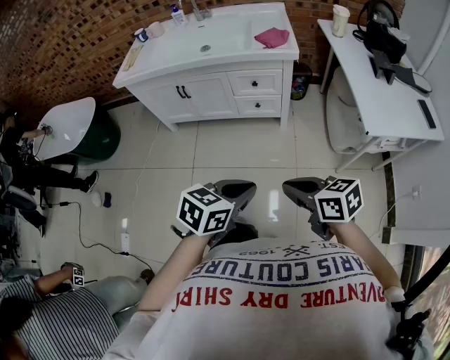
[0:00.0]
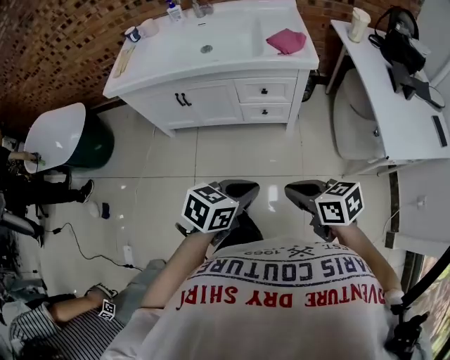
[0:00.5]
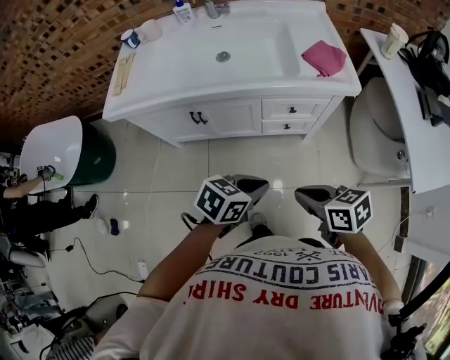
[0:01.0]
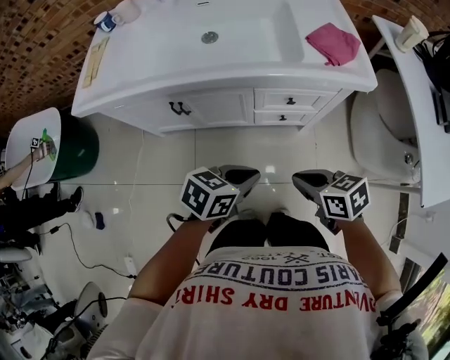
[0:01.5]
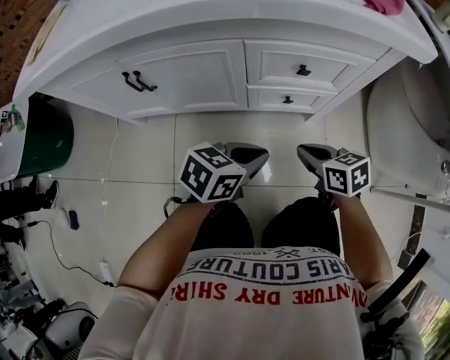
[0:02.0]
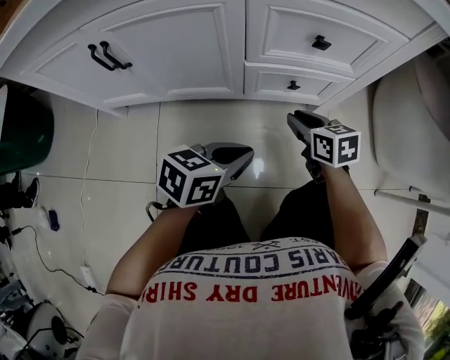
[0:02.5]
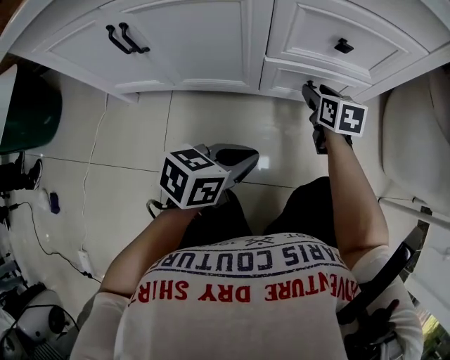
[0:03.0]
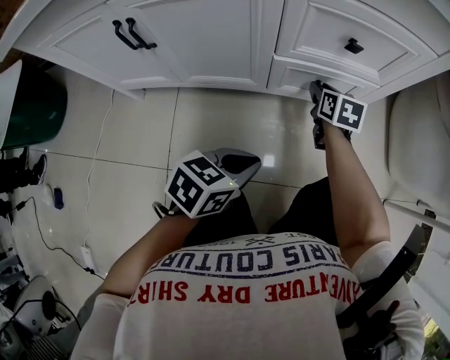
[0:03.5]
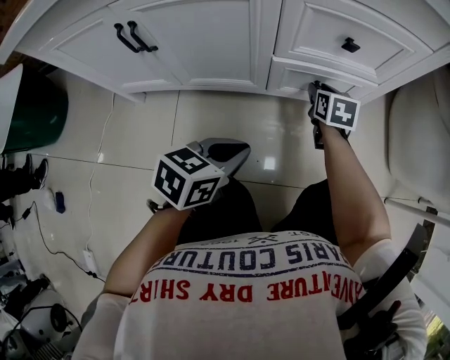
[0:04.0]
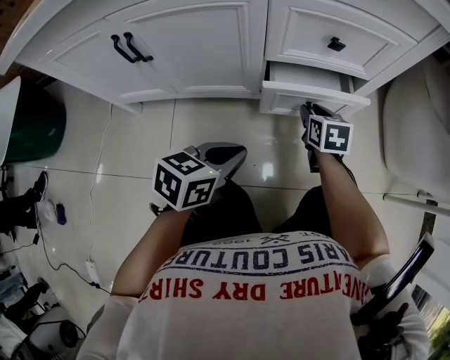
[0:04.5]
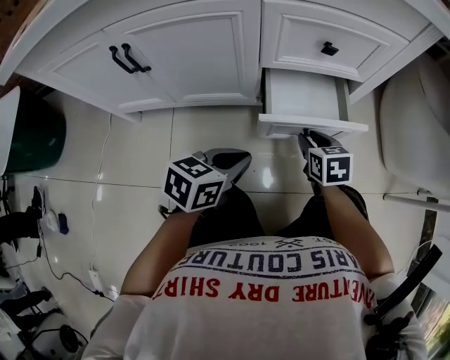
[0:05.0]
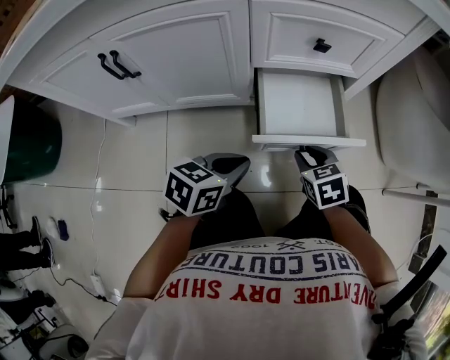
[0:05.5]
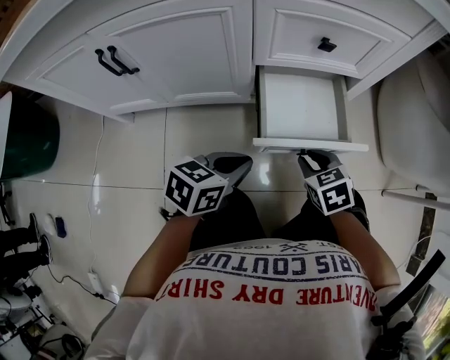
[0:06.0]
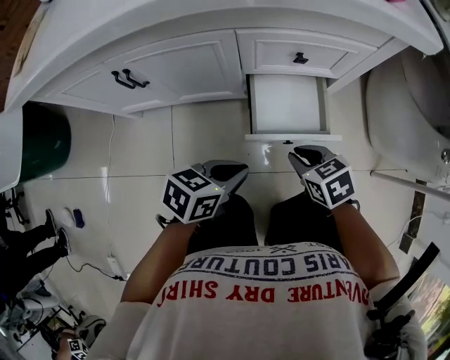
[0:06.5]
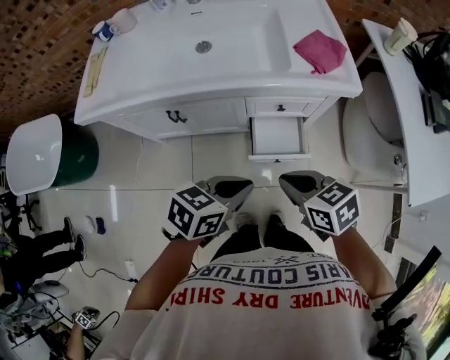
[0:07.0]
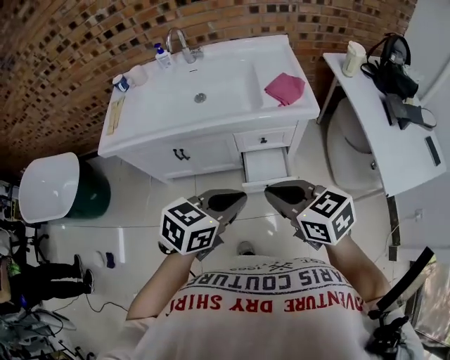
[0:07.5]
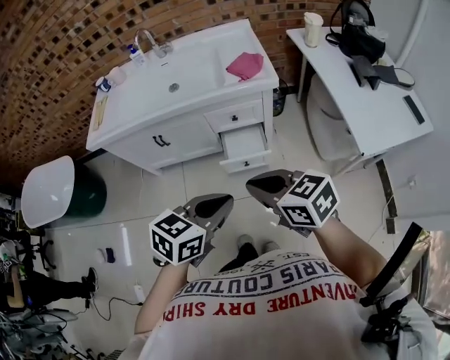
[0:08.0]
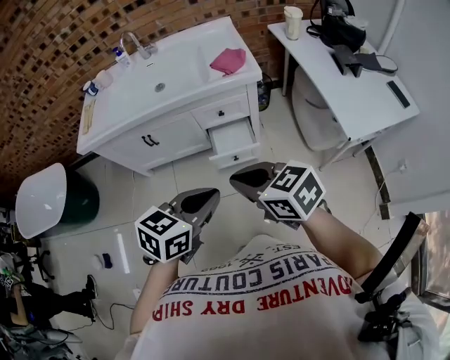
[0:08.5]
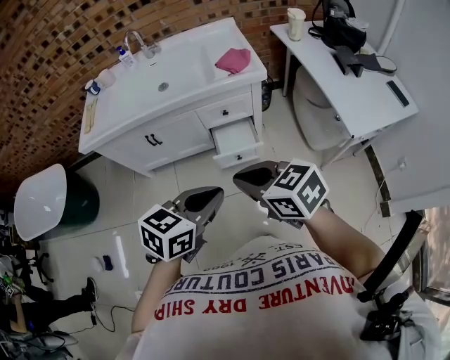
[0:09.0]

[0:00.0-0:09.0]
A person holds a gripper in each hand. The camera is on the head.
0:00.0 to 0:02.0: Both grippers are carried roughly 50 cm.
0:02.0 to 0:04.5: The right gripper moves downward and forward, some 20 cm, changes its angle by roughly 30 degrees, and opens its fingers. The left gripper moves downward and to the left, roughly 15 cm.
0:04.5 to 0:07.0: The left gripper goes approximately 40 cm upward. Meanwhile the right gripper heads upward and backward, covering about 50 cm, changes its angle by some 30 degrees, and closes.
0:07.0 to 0:09.0: Both grippers move backward and upward, some 30 cm.

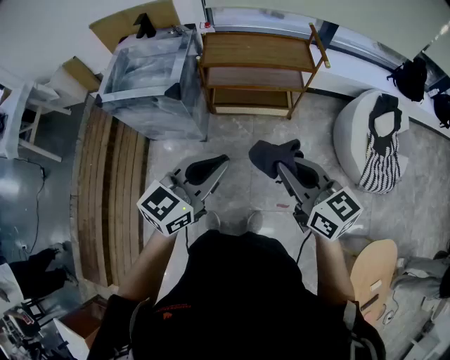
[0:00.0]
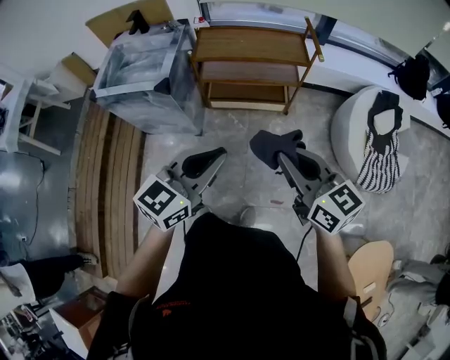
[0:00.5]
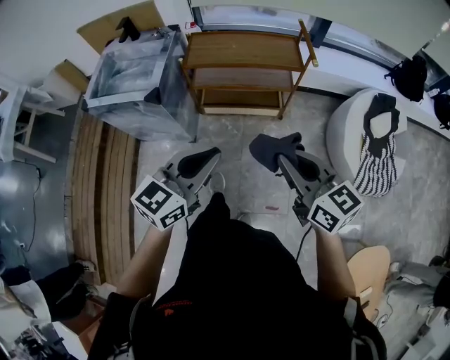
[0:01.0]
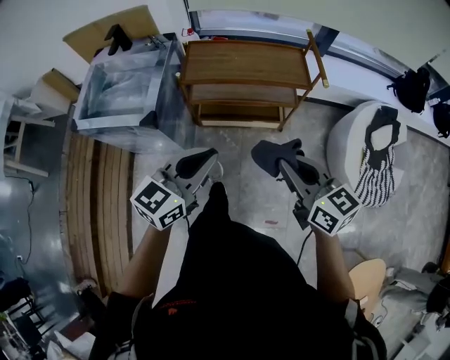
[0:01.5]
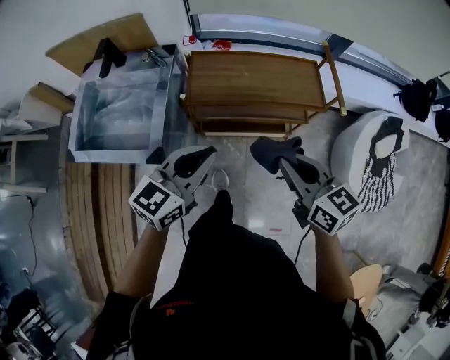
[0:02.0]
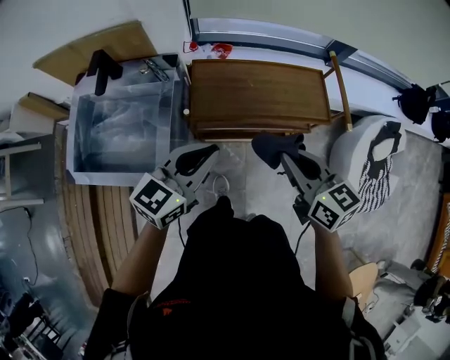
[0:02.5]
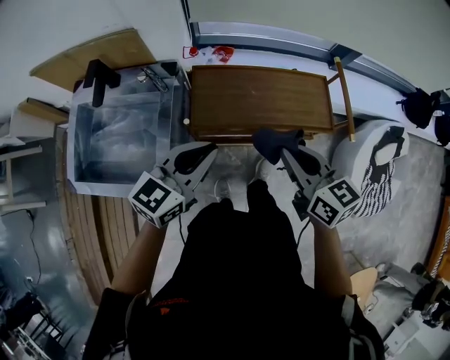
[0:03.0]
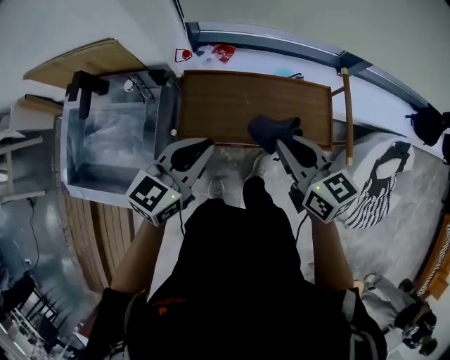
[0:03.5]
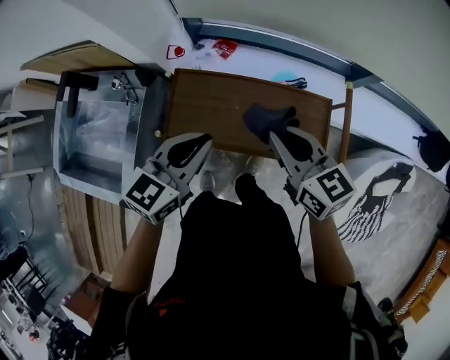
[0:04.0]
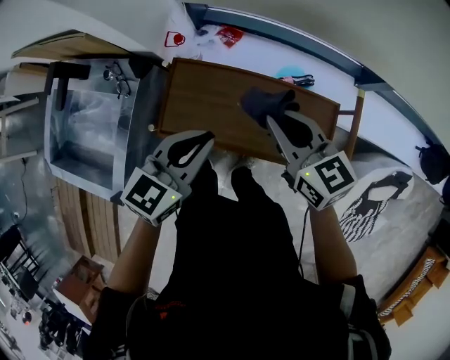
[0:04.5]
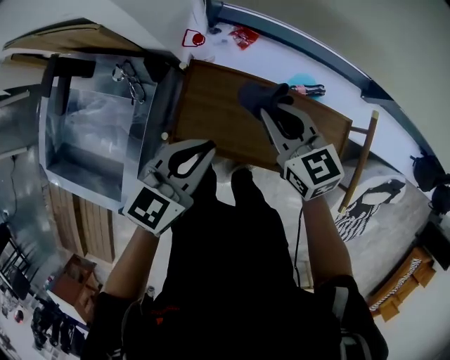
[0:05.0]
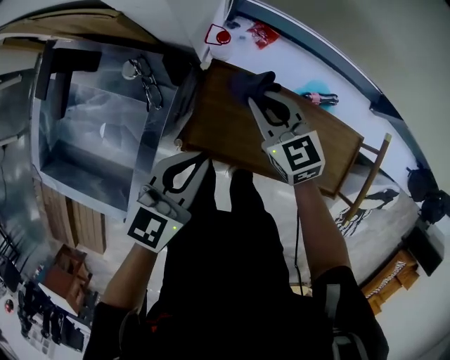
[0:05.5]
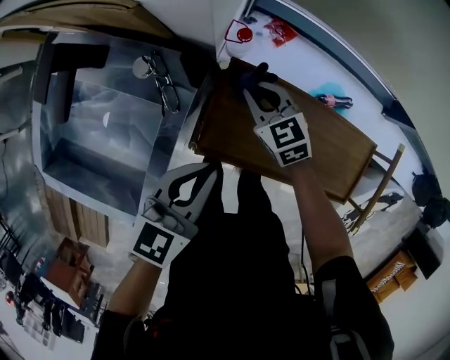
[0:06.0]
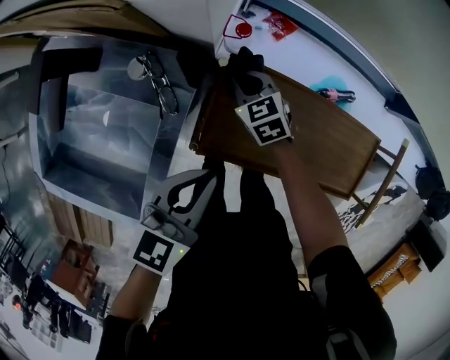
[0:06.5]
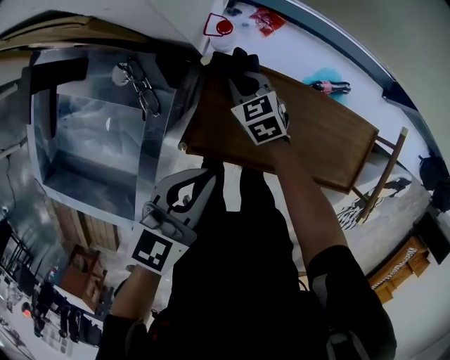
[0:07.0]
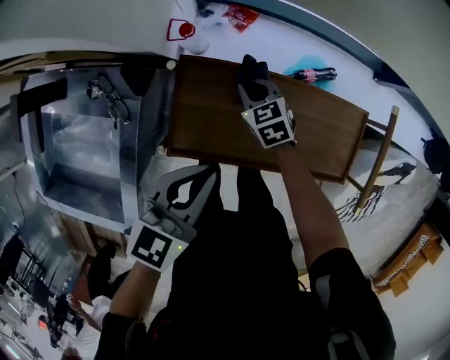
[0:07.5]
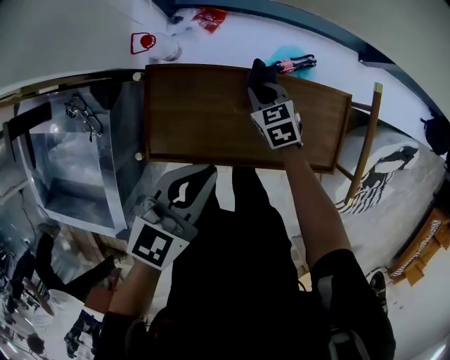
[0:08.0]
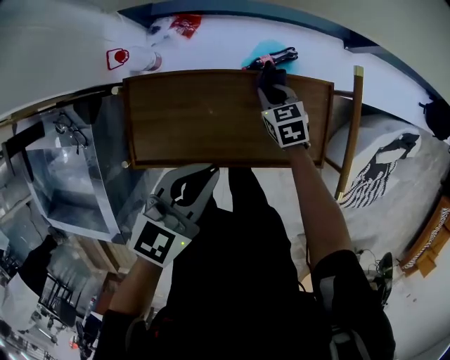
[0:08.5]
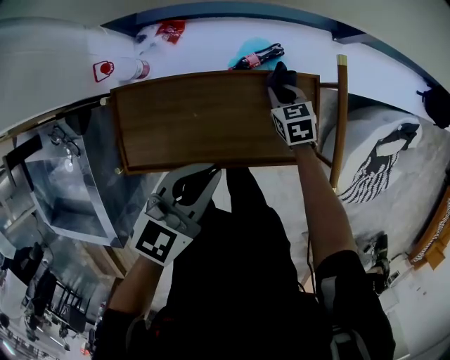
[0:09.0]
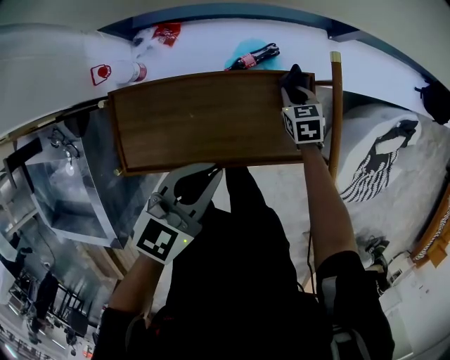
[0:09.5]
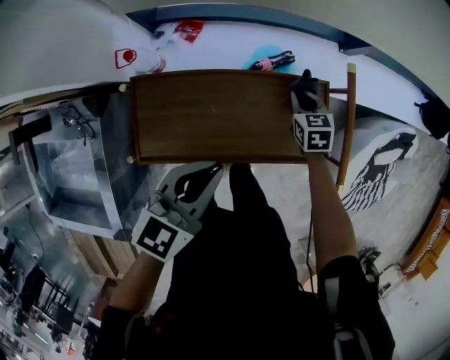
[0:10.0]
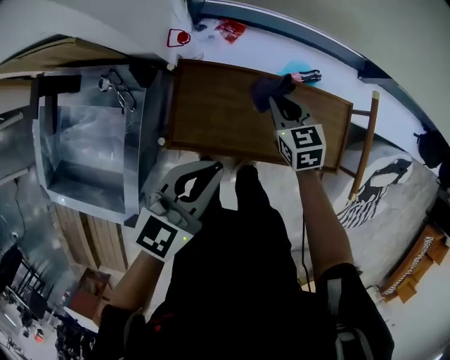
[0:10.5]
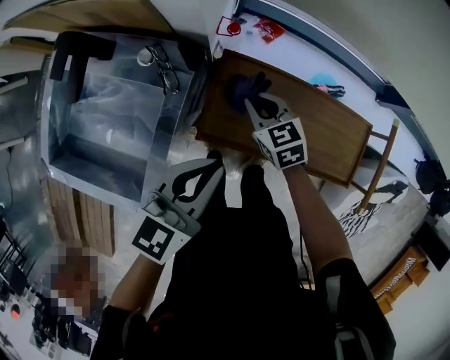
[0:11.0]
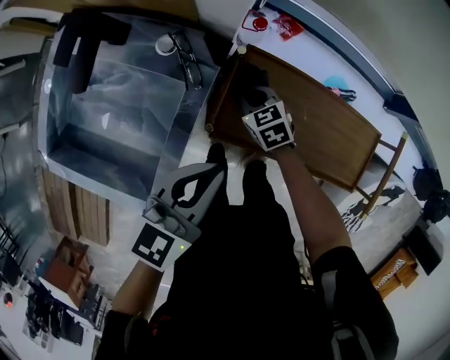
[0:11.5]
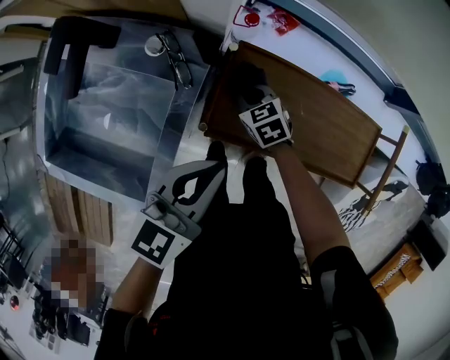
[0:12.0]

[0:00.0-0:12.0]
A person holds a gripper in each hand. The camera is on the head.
0:00.0 to 0:02.0: Both grippers move forward, about 35 cm.
0:02.0 to 0:04.0: Both grippers travel together forward, about 35 cm.
0:04.0 to 0:06.0: The right gripper shifts some 40 cm to the left, downward and forward, and turns by about 30 degrees, while the left gripper heads to the left and downward, covering approximately 20 cm.
0:06.0 to 0:08.0: Both grippers move to the right, roughly 20 cm. The right gripper turns by about 20 degrees.
0:08.0 to 0:10.0: The left gripper travels to the right by about 5 cm, while the right gripper shifts about 20 cm to the right, and swivels some 20 degrees.
0:10.0 to 0:12.0: The right gripper reaches roughly 10 cm upward, then returns, and rotates some 40 degrees, while the left gripper moves approximately 25 cm.

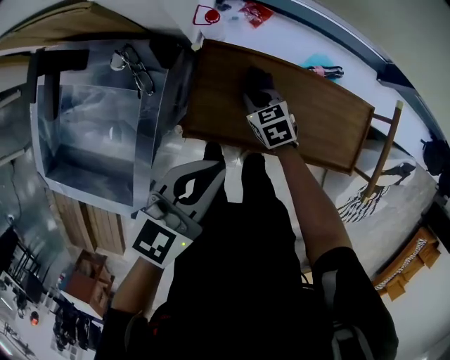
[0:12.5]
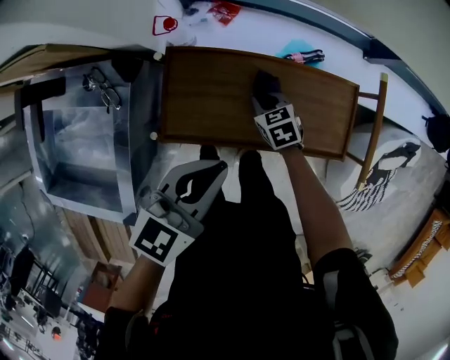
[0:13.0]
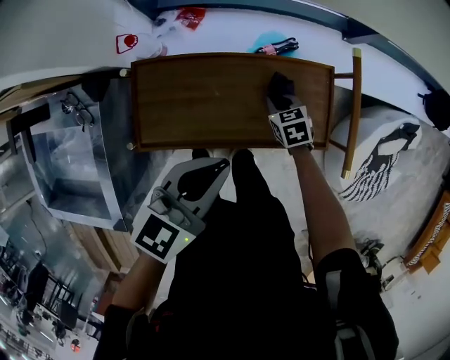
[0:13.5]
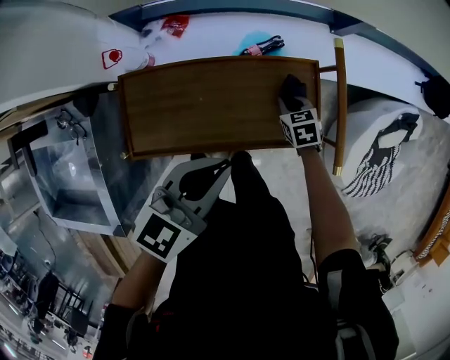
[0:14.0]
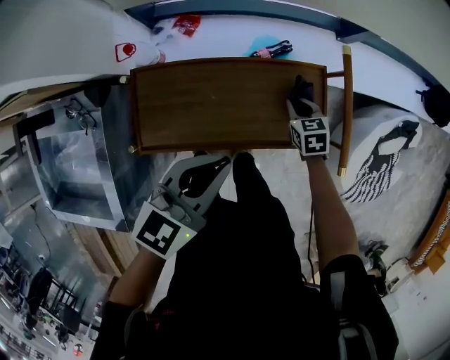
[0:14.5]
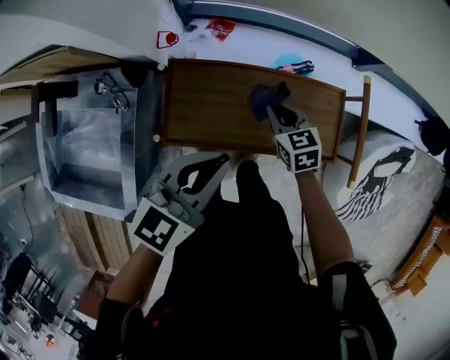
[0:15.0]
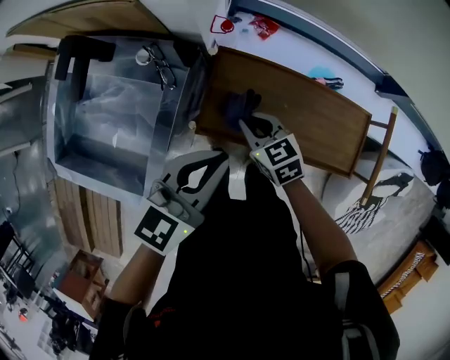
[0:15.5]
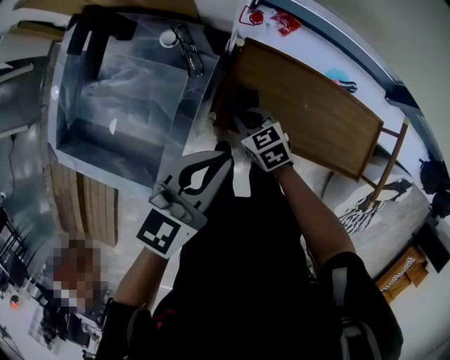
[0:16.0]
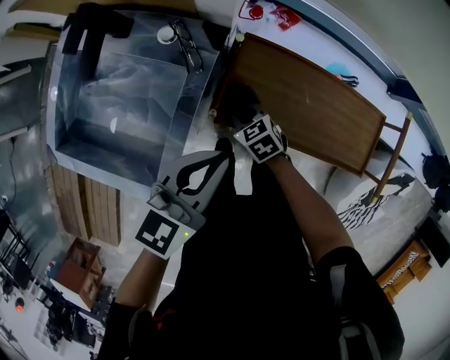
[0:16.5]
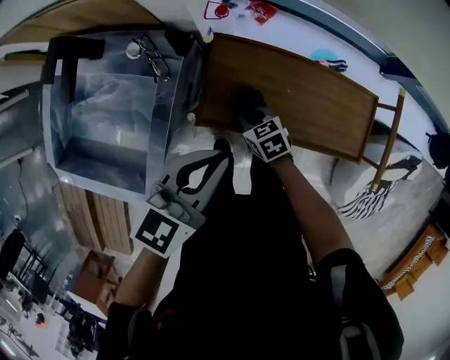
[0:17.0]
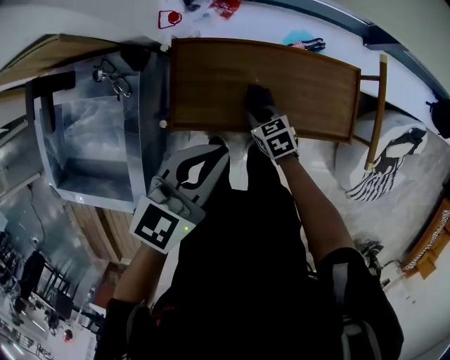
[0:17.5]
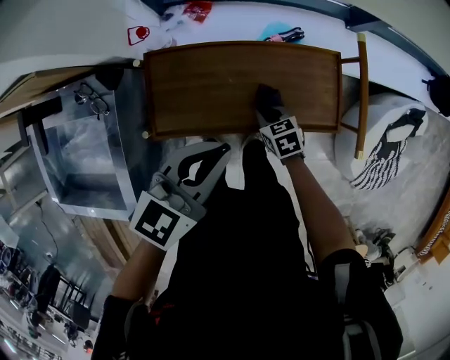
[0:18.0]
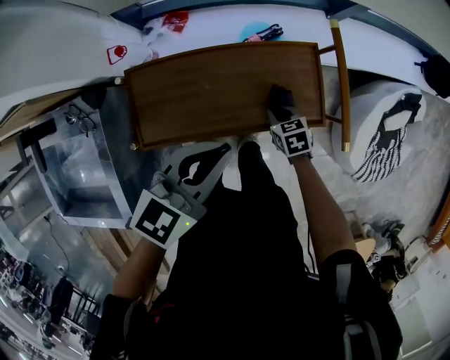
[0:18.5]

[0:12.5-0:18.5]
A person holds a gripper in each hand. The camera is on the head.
0:12.5 to 0:14.5: The left gripper changes place by some 20 cm. Meanwhile the right gripper shifts by roughly 35 cm, and rotates some 30 degrees.
0:14.5 to 0:16.5: The left gripper moves about 30 cm, and changes its angle by about 20 degrees. The right gripper travels upward and back again, about 10 cm each way, and rotates roughly 40 degrees.
0:16.5 to 0:18.5: The left gripper changes place by roughly 30 cm, and swivels some 30 degrees. Meanwhile the right gripper changes place by roughly 40 cm, and swivels about 40 degrees.
